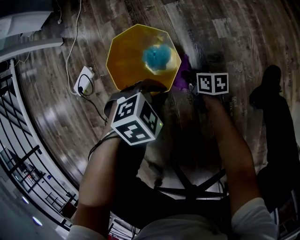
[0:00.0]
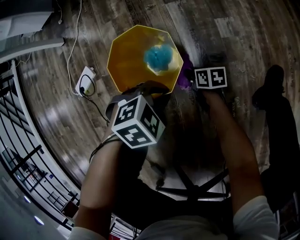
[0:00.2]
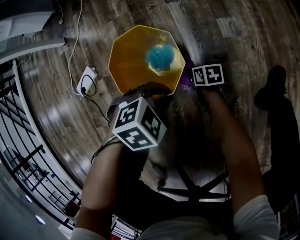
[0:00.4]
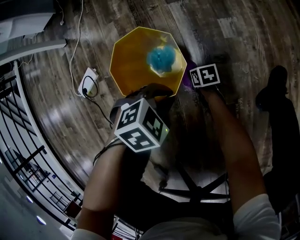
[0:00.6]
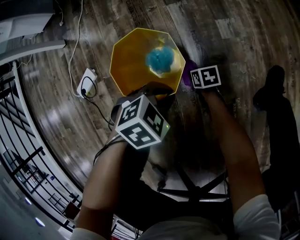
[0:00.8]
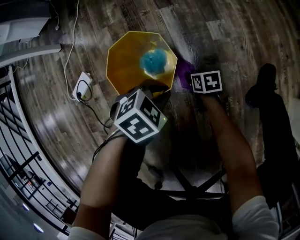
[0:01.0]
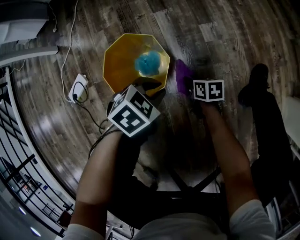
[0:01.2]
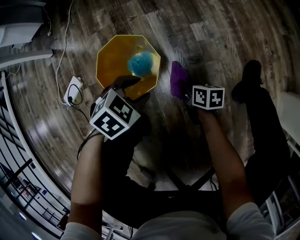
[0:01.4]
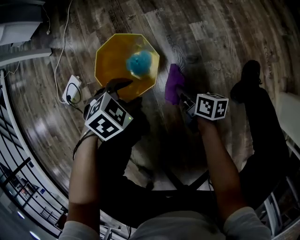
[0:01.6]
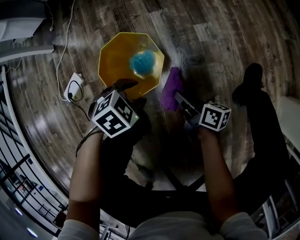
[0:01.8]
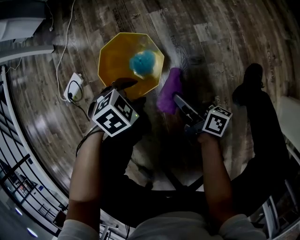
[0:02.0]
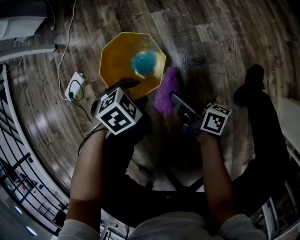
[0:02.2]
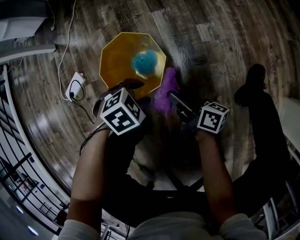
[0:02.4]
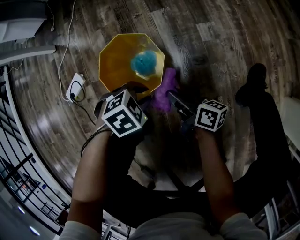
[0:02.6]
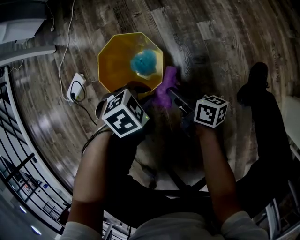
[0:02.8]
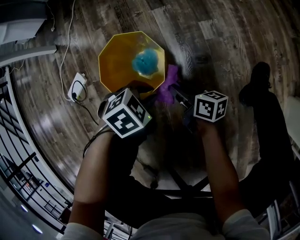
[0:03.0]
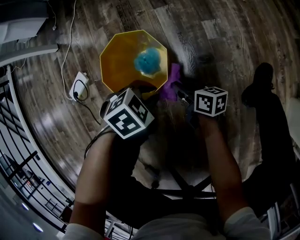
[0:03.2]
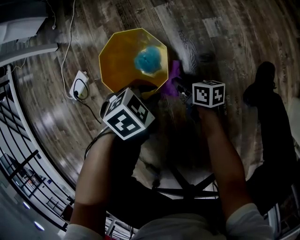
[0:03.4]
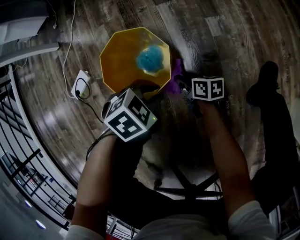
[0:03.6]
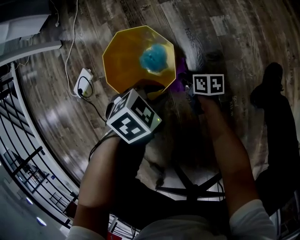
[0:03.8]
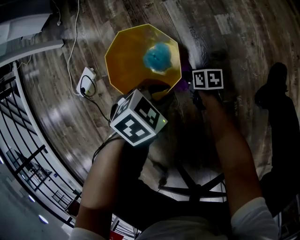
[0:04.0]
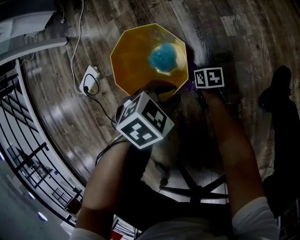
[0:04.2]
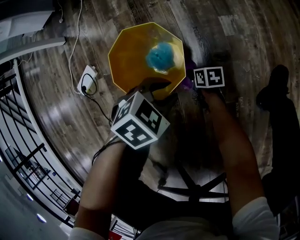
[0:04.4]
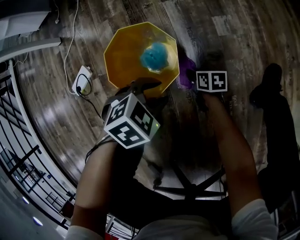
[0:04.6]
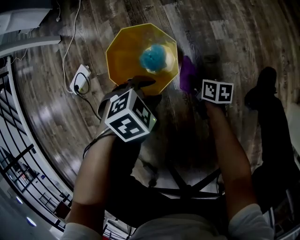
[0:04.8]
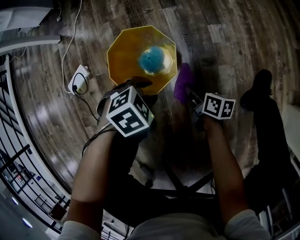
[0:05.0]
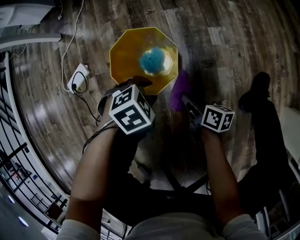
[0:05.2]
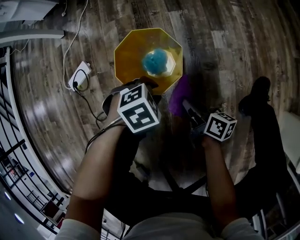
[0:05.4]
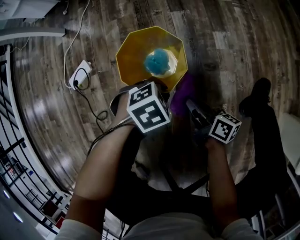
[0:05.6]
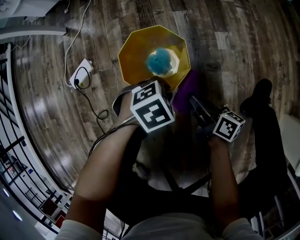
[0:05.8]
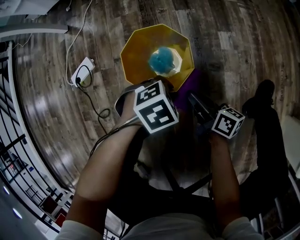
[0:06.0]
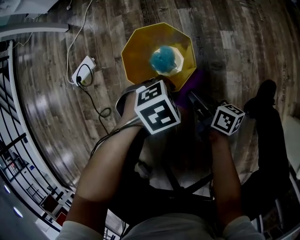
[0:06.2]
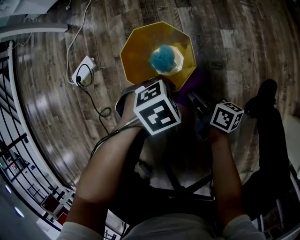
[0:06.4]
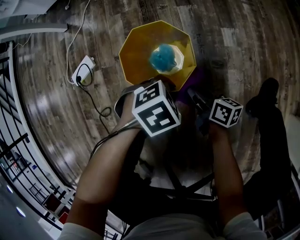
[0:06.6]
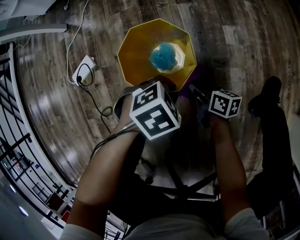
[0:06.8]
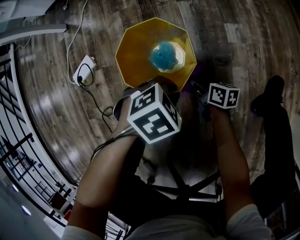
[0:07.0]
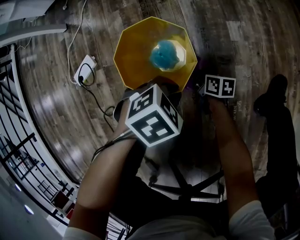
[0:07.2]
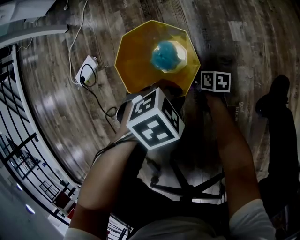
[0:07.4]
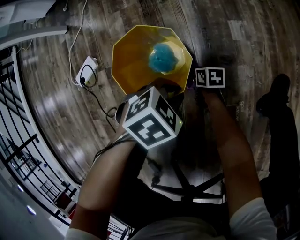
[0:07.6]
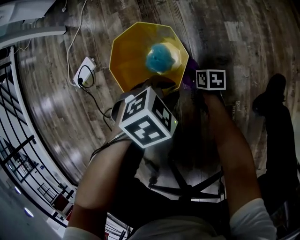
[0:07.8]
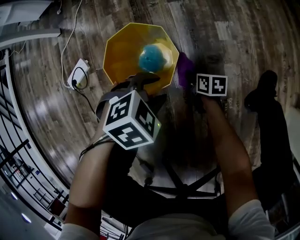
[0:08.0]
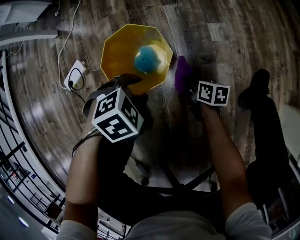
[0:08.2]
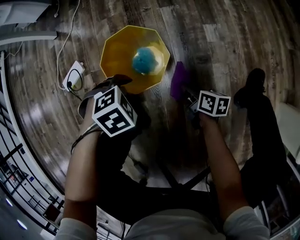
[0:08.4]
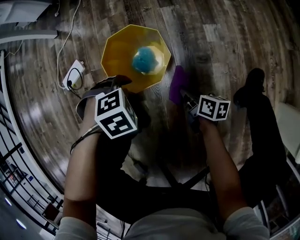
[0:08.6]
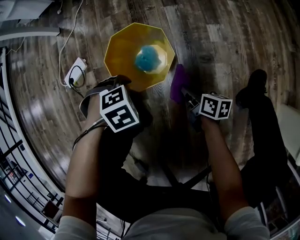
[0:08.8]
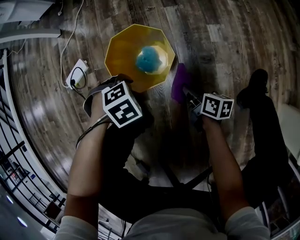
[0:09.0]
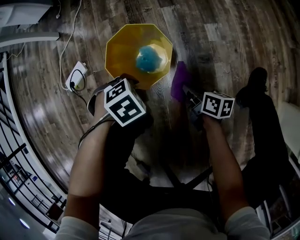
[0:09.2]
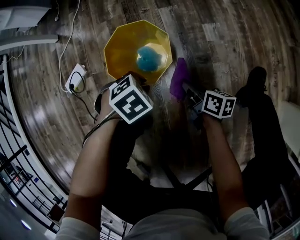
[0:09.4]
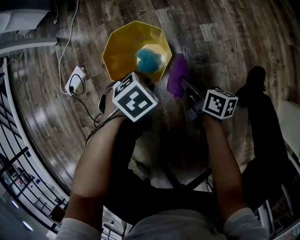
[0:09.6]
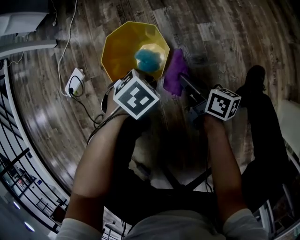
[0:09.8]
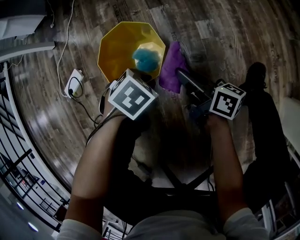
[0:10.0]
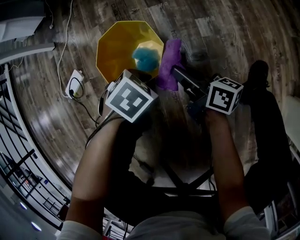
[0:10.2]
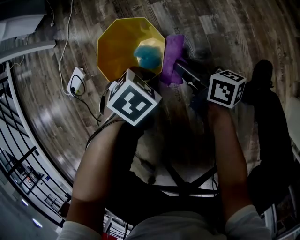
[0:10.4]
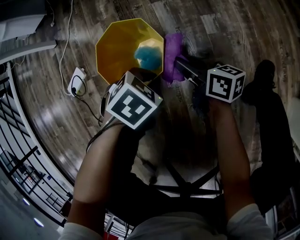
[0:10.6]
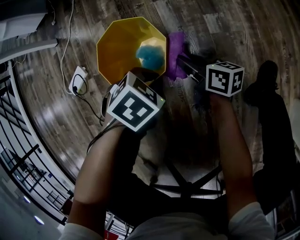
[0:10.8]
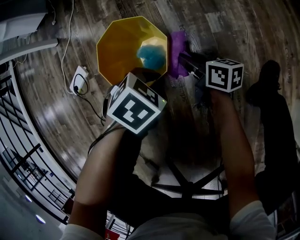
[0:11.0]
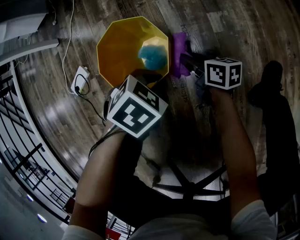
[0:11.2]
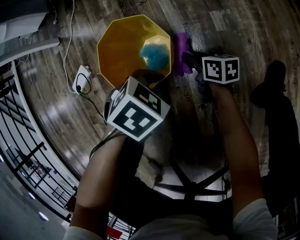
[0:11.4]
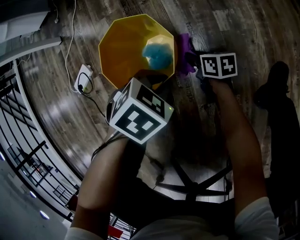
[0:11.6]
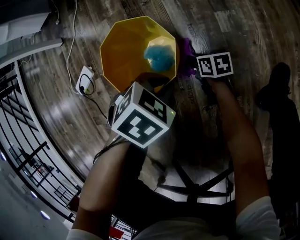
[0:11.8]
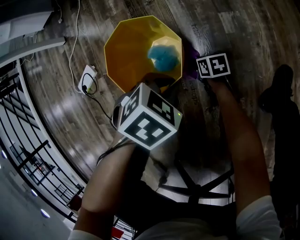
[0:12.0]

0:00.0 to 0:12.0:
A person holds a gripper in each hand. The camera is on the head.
0:00.0 to 0:01.6: The left gripper opens up. Meanwhile the right gripper shifts roughly 10 cm upward.
0:01.6 to 0:03.0: The right gripper moves some 10 cm upward and comes back, while the left gripper closes up.
0:03.0 to 0:04.4: The right gripper moves downward, approximately 15 cm, and points its fingers approximately 30 degrees further downward.
0:04.4 to 0:06.0: The right gripper moves upward, some 20 cm, and points its fingers about 30 degrees further upward.
0:06.0 to 0:07.6: The right gripper is displaced downward by some 20 cm, and points its fingers approximately 40 degrees further downward.
0:07.6 to 0:09.0: The right gripper moves upward, some 15 cm, and rotates approximately 20 degrees, while the left gripper ends up about 10 cm from where it was, and turns by approximately 20 degrees.
0:09.0 to 0:10.4: The left gripper ends up roughly 15 cm from where it was, and changes its angle by approximately 20 degrees, while the right gripper shifts by some 15 cm, and turns by approximately 20 degrees.
0:10.4 to 0:12.0: The right gripper heads downward, covering about 25 cm, and angles its fingers downward, by some 40 degrees.

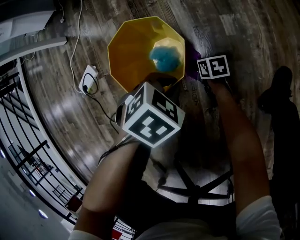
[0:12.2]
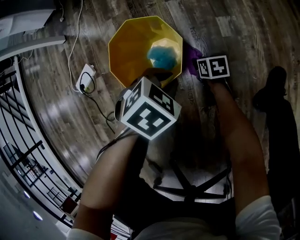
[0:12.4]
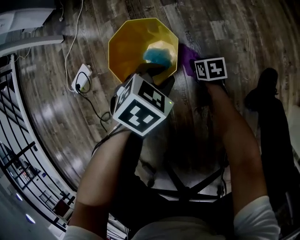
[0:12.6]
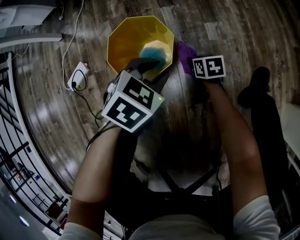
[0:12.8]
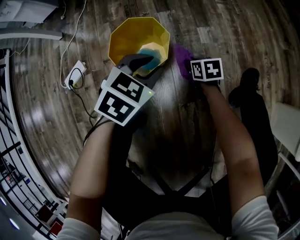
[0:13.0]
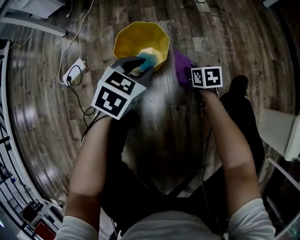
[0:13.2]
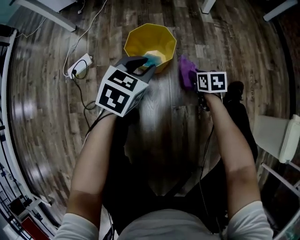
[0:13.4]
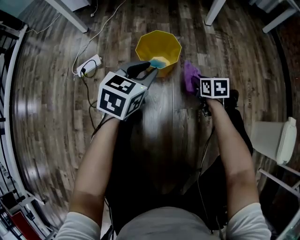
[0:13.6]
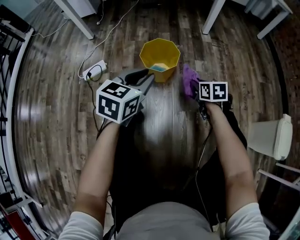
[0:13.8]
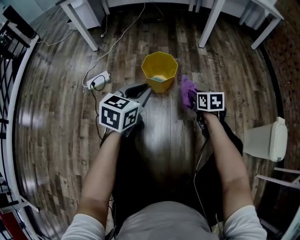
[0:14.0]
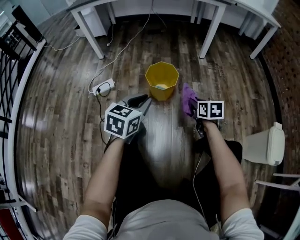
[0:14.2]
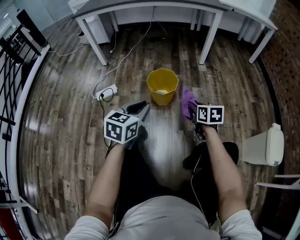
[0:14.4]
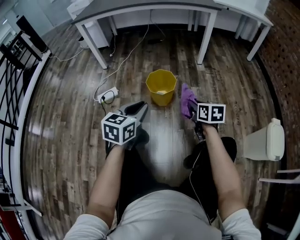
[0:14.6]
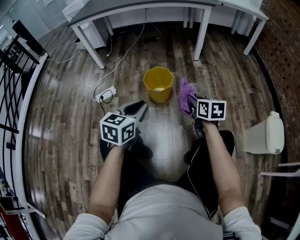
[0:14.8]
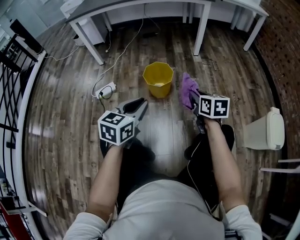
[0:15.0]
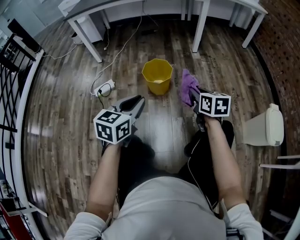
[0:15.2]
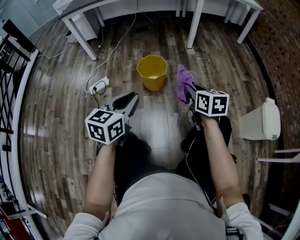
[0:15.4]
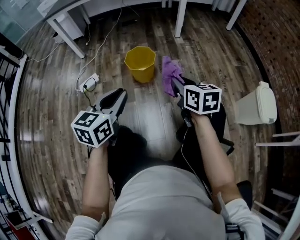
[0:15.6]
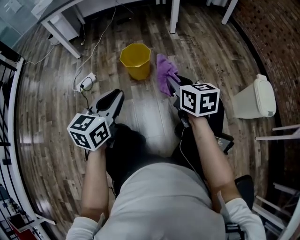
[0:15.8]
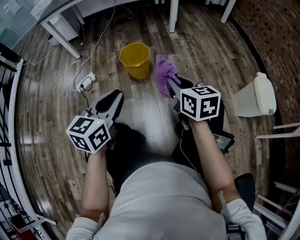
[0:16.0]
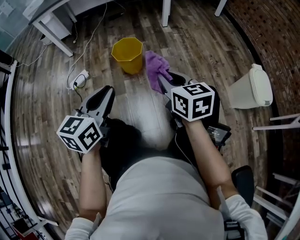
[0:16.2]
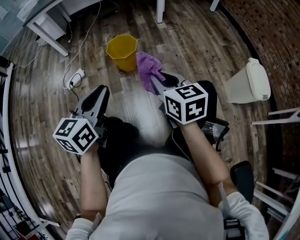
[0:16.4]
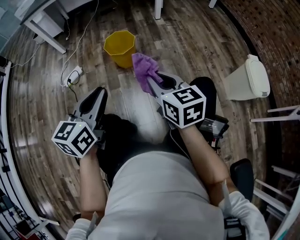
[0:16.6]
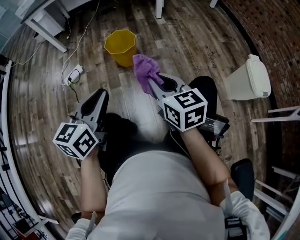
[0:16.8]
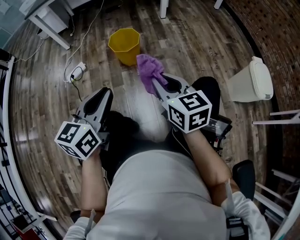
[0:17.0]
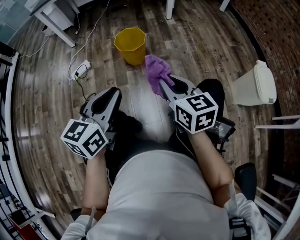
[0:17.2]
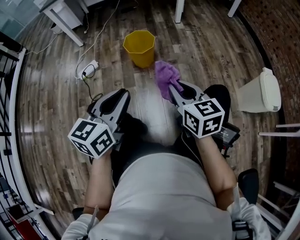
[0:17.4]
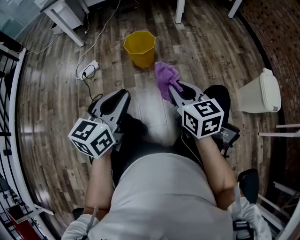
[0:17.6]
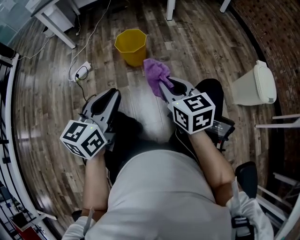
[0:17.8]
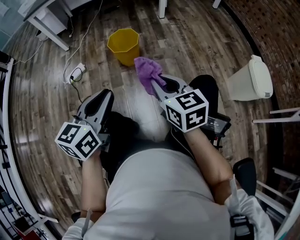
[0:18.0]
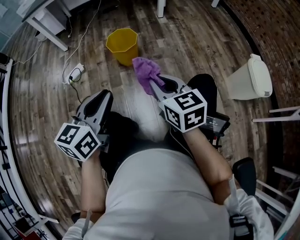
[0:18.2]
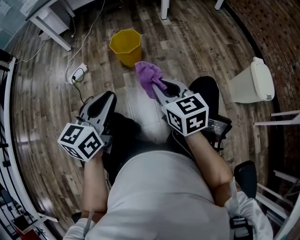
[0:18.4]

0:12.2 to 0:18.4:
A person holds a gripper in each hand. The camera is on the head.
0:12.2 to 0:13.8: Both grippers travel together upward, some 30 cm. The left gripper tips its fingers upward by roughly 40 degrees; the right gripper changes its angle by roughly 30 degrees.
0:13.8 to 0:15.4: The left gripper goes some 20 cm backward and upward. Meanwhile the right gripper goes some 25 cm upward and backward.
0:15.4 to 0:16.8: The right gripper travels backward by some 15 cm. Meanwhile the left gripper travels backward by roughly 10 cm.
0:16.8 to 0:18.4: There are only small adjustments of the grippers.

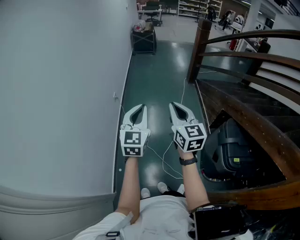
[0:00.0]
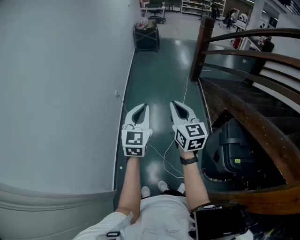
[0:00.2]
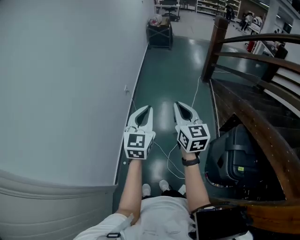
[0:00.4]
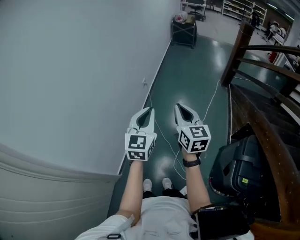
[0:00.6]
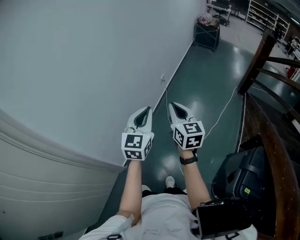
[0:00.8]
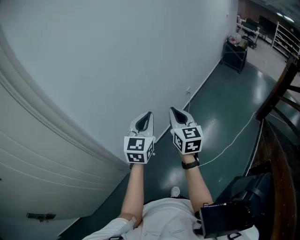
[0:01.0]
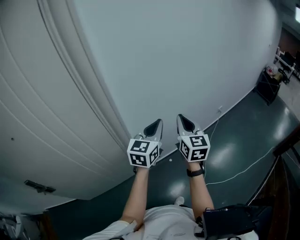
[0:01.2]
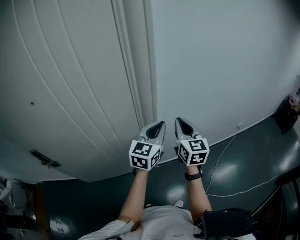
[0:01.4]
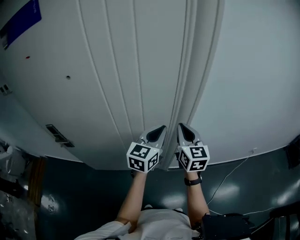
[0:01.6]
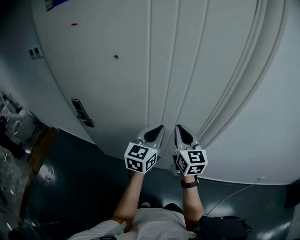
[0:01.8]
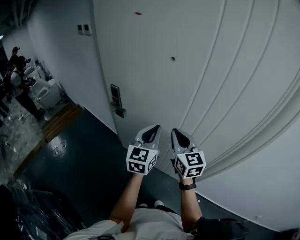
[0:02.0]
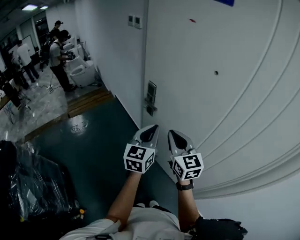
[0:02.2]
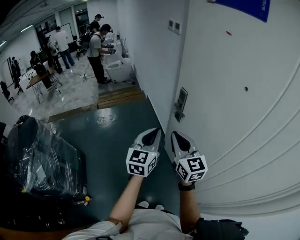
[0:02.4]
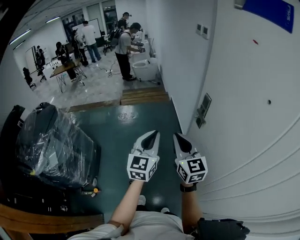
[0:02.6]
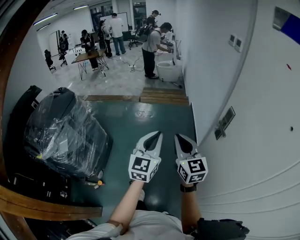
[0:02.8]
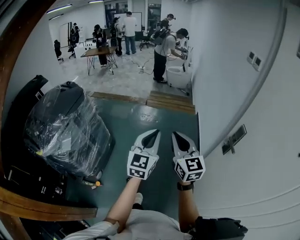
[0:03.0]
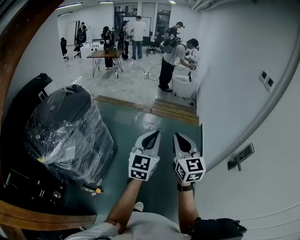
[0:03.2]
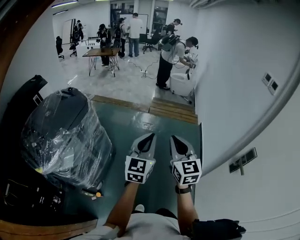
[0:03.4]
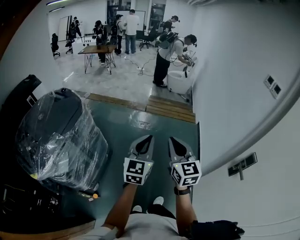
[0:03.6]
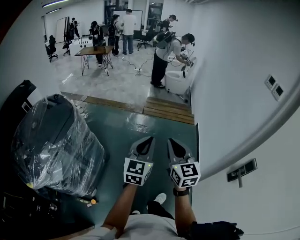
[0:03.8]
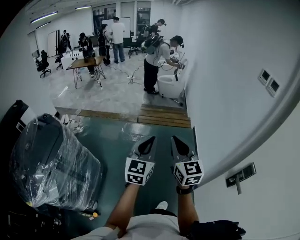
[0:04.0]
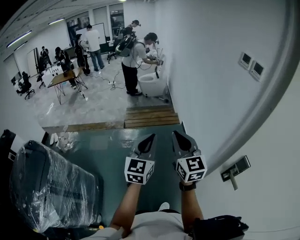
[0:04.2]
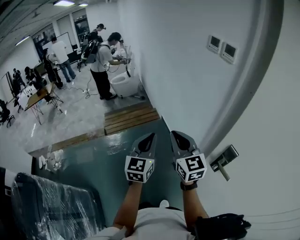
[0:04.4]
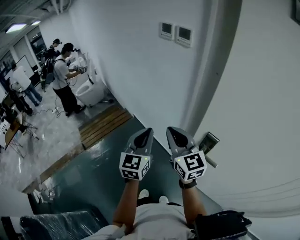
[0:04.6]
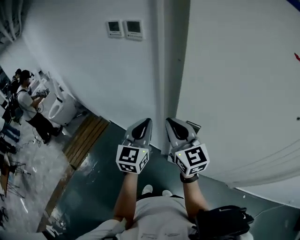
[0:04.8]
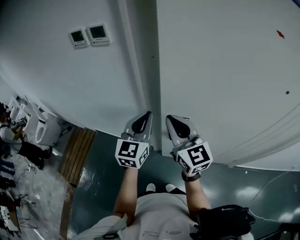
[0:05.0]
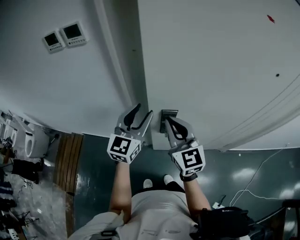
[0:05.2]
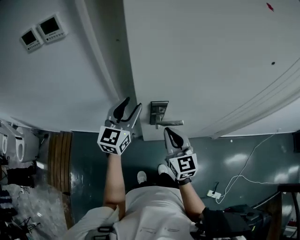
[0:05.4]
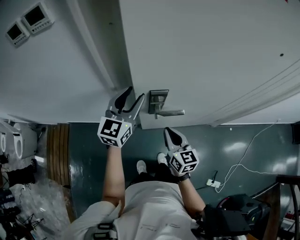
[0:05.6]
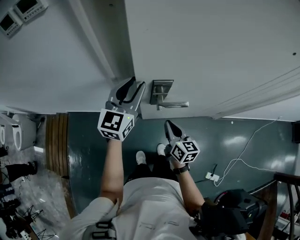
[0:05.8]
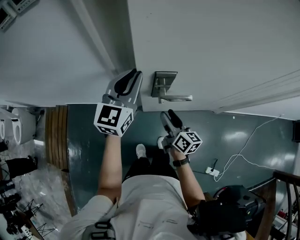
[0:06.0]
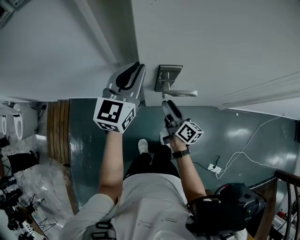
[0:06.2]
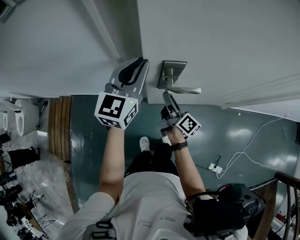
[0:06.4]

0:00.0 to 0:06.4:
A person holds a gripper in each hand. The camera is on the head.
0:00.0 to 0:01.6: The two grippers travel together, some 70 cm. The left gripper swivels some 70 degrees. Meanwhile the right gripper rotates approximately 80 degrees.
0:01.6 to 0:03.2: Both grippers are carried roughly 80 cm. The left gripper turns by approximately 110 degrees, while the right gripper rotates roughly 110 degrees.
0:03.2 to 0:04.8: The two grippers travel together, about 50 cm. The left gripper rotates approximately 70 degrees. Meanwhile the right gripper changes its angle by approximately 60 degrees.
0:04.8 to 0:06.4: The left gripper changes place by roughly 15 cm, turns by some 30 degrees, and opens and closes again. The right gripper goes some 30 cm downward, twists about 60 degrees clockwise, seen from behind, and opens.
